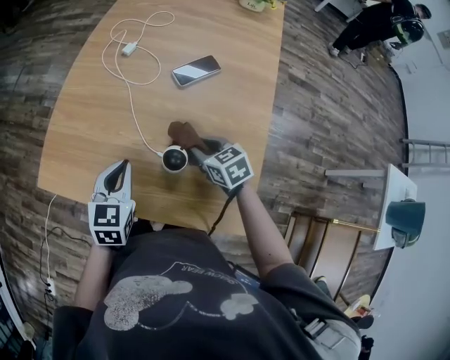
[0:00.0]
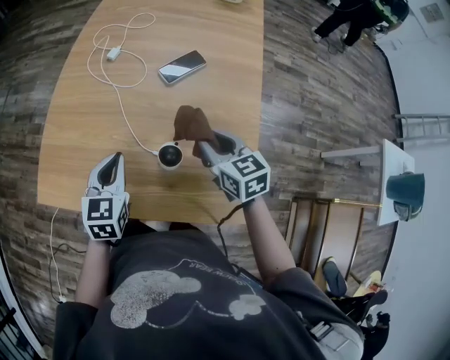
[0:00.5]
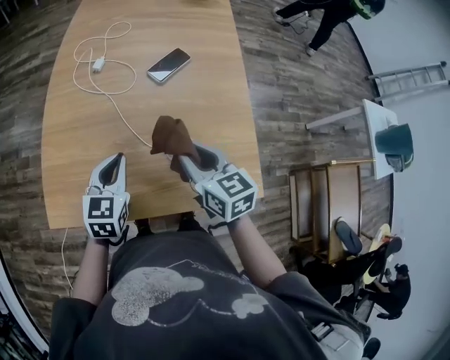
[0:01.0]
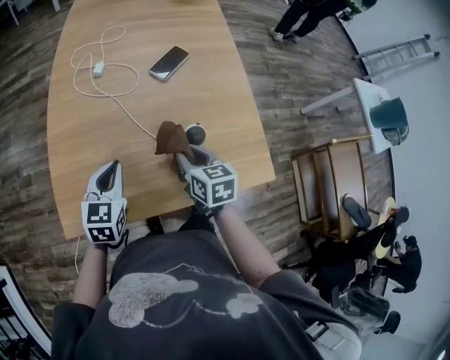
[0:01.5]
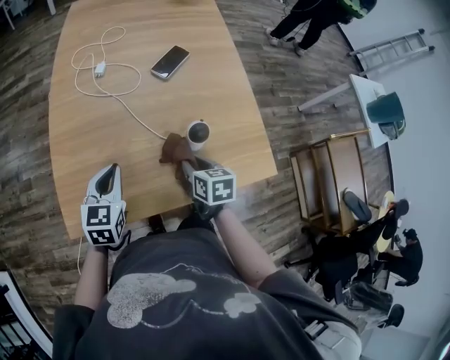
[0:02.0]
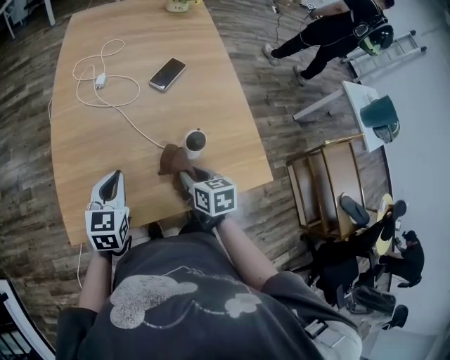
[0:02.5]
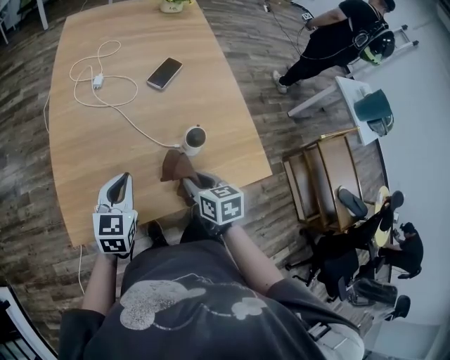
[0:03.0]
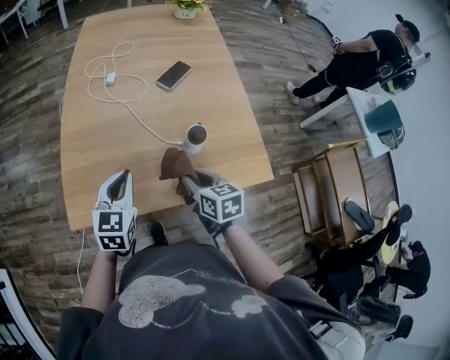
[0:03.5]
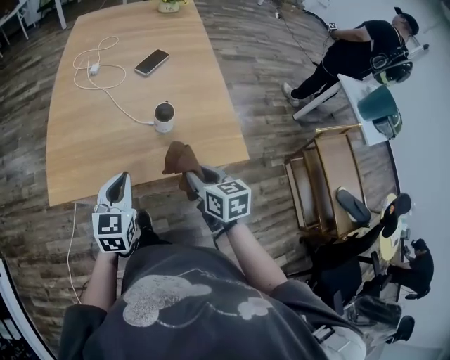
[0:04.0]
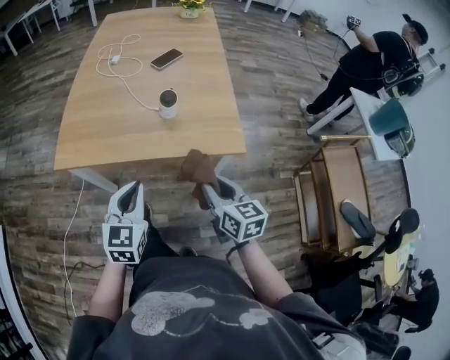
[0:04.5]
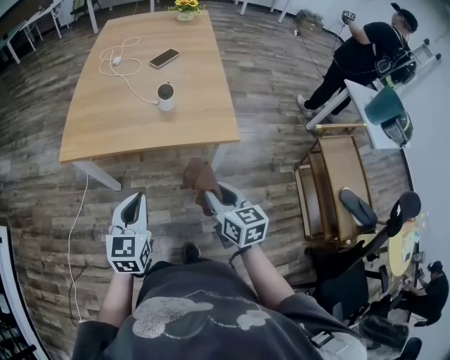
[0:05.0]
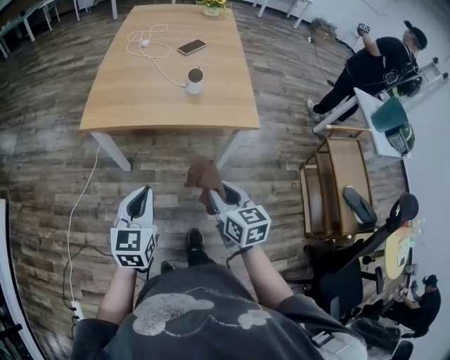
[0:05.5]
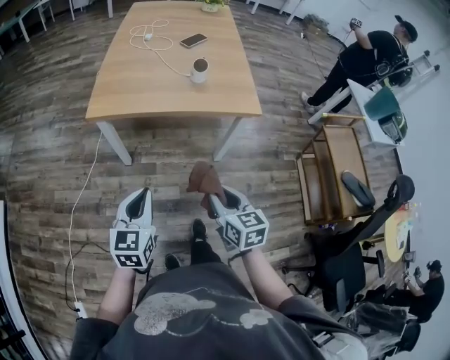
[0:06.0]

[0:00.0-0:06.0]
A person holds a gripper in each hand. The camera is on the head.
0:00.0 to 0:02.0: The right gripper travels upward and back again, roughly 15 cm each way, and turns by about 50 degrees; the left gripper moves approximately 10 cm, and swivels approximately 20 degrees.
0:02.0 to 0:04.0: The right gripper goes about 15 cm backward, to the right and upward. Meanwhile the left gripper shifts some 15 cm backward and to the right.
0:04.0 to 0:06.0: Both grippers travel together backward, roughly 35 cm.

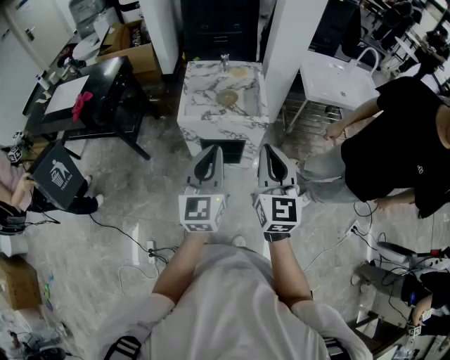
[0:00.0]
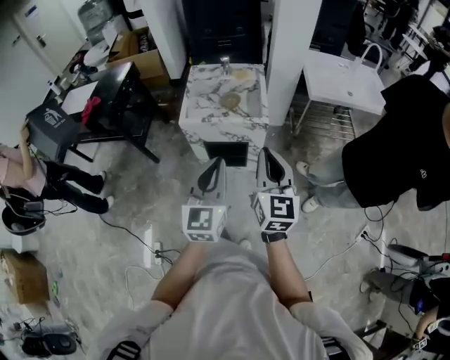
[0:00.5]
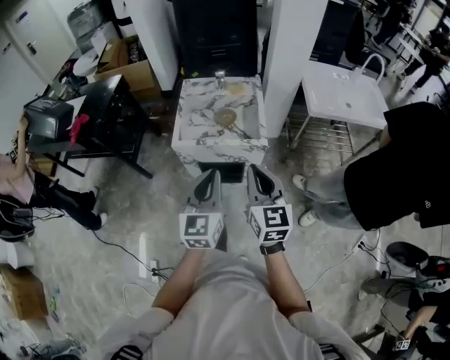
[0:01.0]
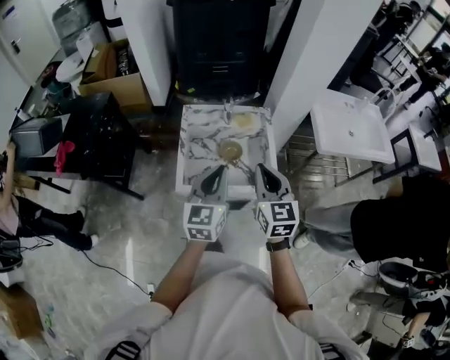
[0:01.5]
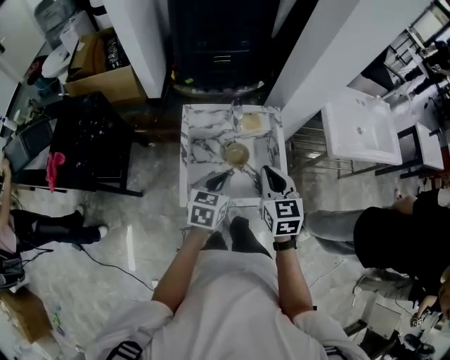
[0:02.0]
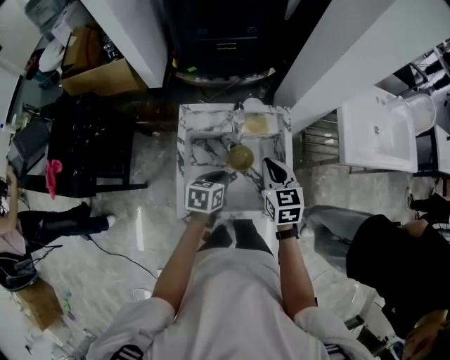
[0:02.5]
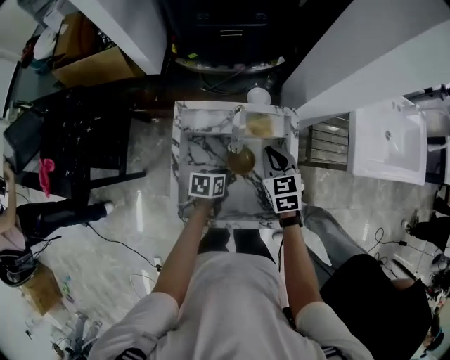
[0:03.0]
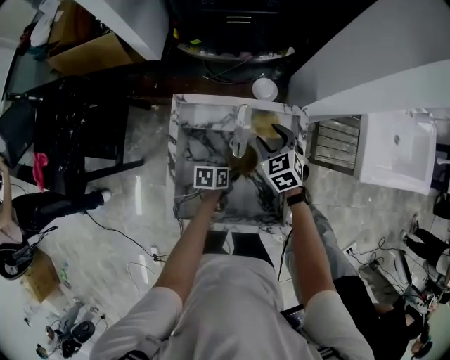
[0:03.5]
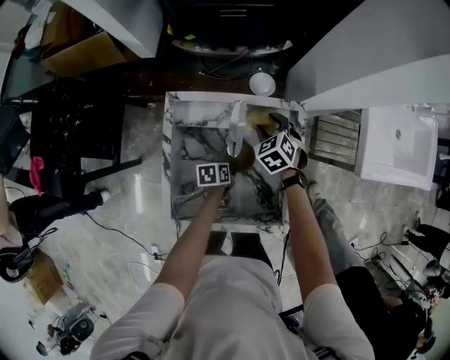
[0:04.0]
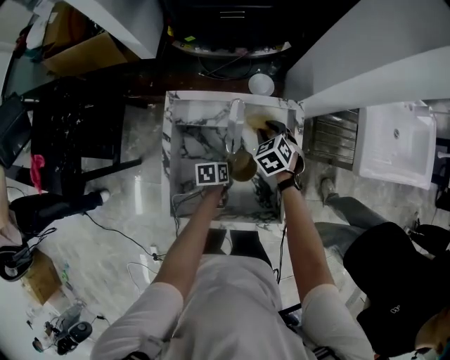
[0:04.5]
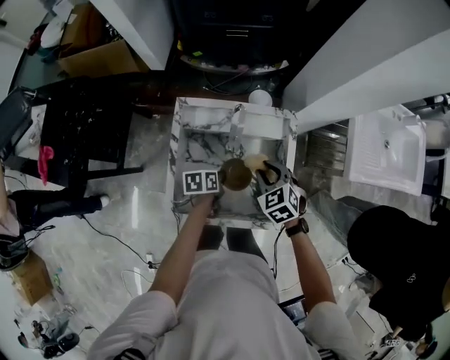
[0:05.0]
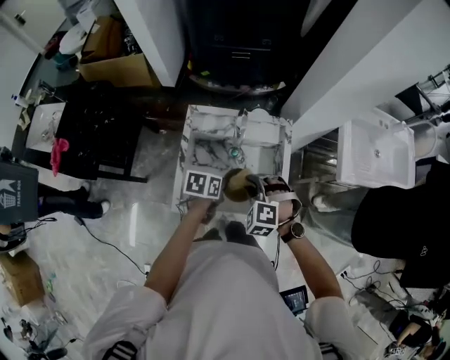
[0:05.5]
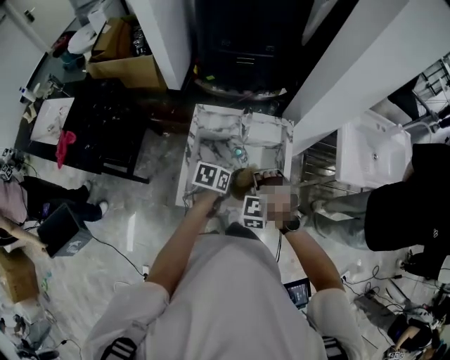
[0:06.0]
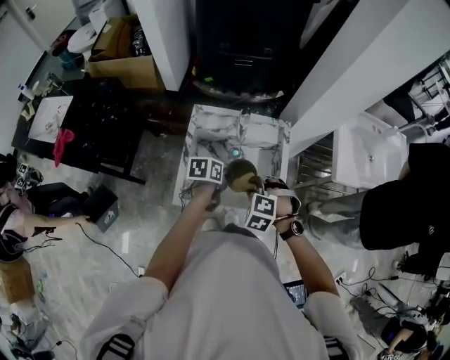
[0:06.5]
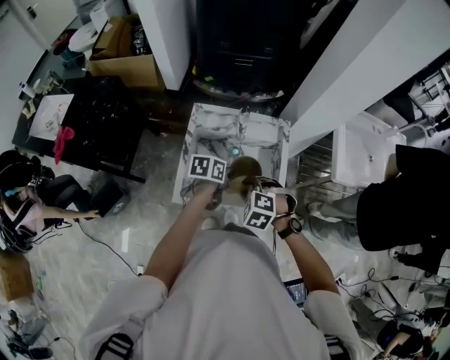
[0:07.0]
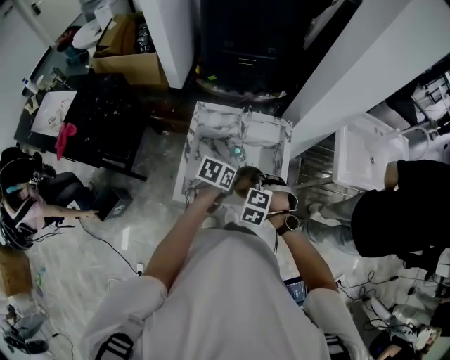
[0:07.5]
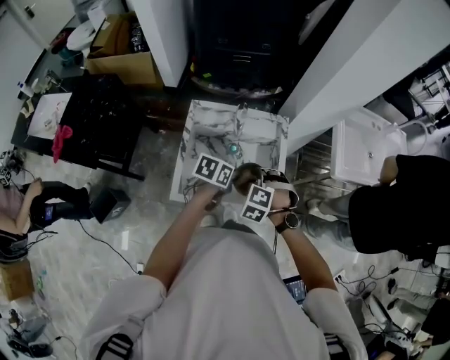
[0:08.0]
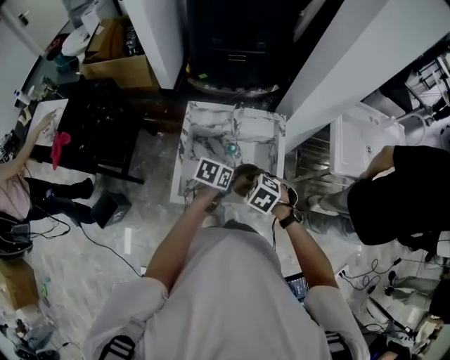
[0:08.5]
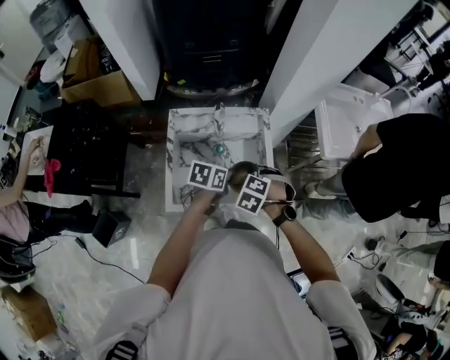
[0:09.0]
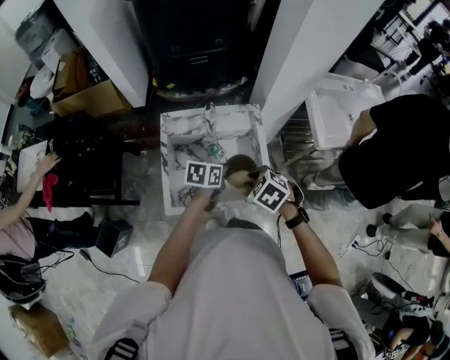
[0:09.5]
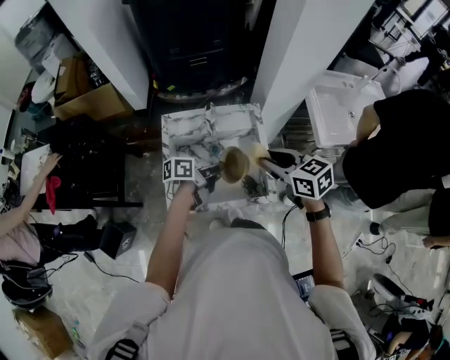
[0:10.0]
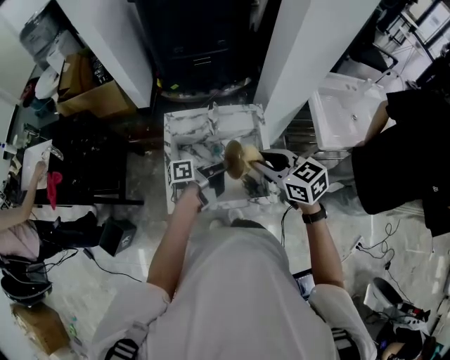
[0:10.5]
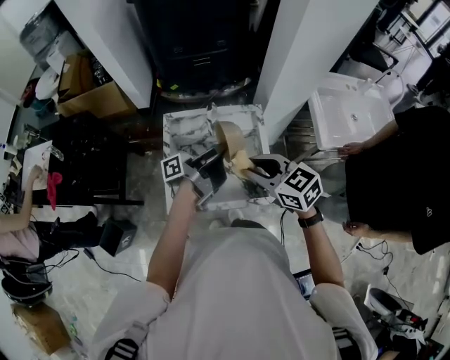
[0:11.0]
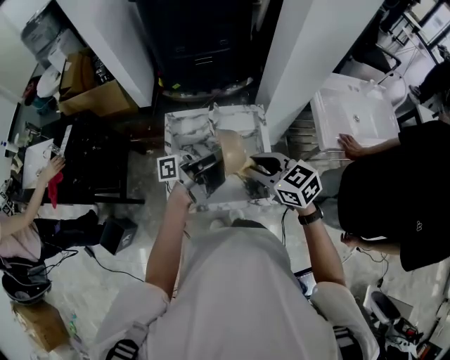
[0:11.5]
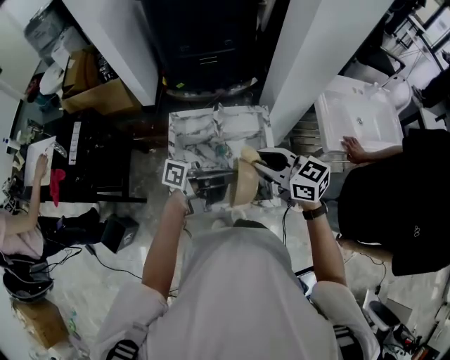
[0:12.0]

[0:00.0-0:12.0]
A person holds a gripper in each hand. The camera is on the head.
0:00.0 to 0:02.0: The left gripper is displaced forward and downward by approximately 40 cm, and tilts its fingers some 40 degrees downward. Meanwhile the right gripper shifts approximately 40 cm forward, and turns by roughly 30 degrees.
0:02.0 to 0:04.0: The right gripper heads forward and downward, covering approximately 35 cm, tilts its fingers roughly 30 degrees downward, and opens. Meanwhile the left gripper travels downward by roughly 30 cm, rolls counterclockwise, seen from behind, by roughly 40 degrees, and opens up.
0:04.0 to 0:06.0: The left gripper goes approximately 20 cm upward, swivels some 20 degrees, and closes up. Meanwhile the right gripper goes some 25 cm backward and upward, twists roughly 60 degrees counterclockwise, seen from behind, and closes its fingers.
0:06.0 to 0:08.0: The right gripper changes its angle by about 20 degrees.
0:08.0 to 0:10.0: The right gripper moves upward, roughly 15 cm, and rotates around the line of its fingers by roughly 60 degrees, clockwise from behind; the left gripper rotates approximately 30 degrees.
0:10.0 to 0:12.0: The left gripper moves upward, about 15 cm, and angles its fingers upward, by approximately 30 degrees, while the right gripper moves about 5 cm.

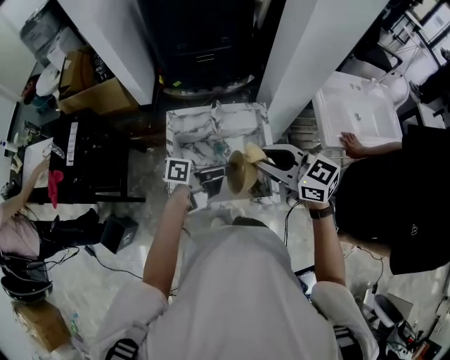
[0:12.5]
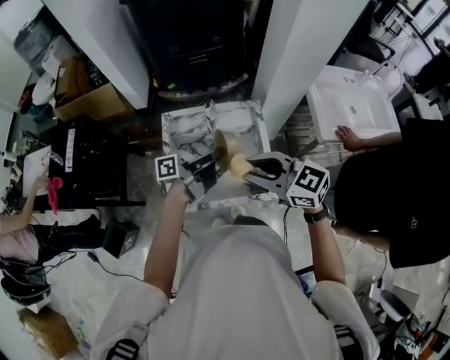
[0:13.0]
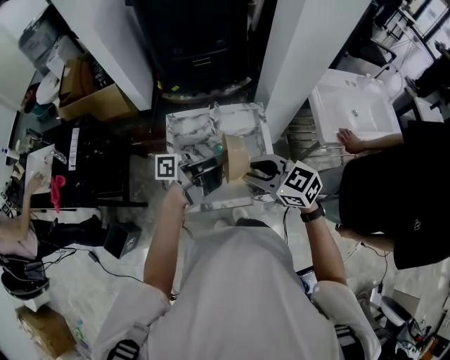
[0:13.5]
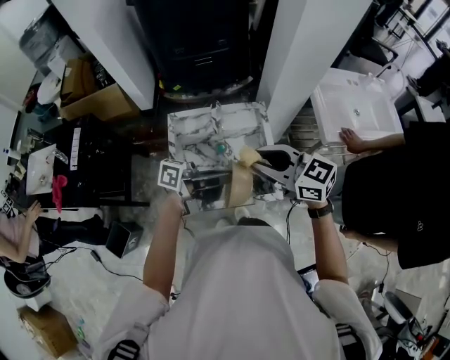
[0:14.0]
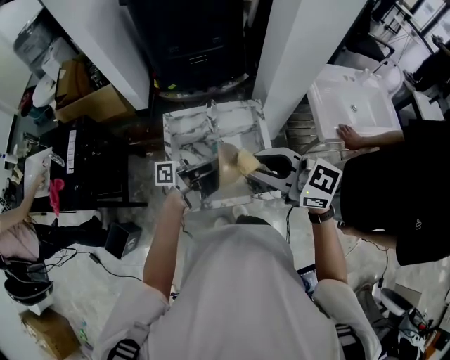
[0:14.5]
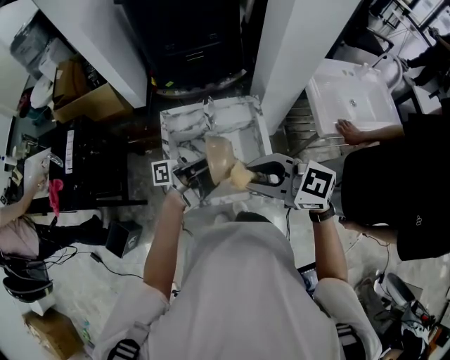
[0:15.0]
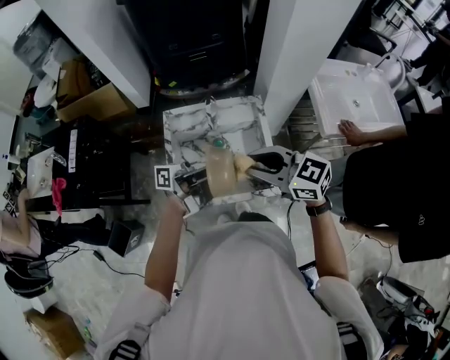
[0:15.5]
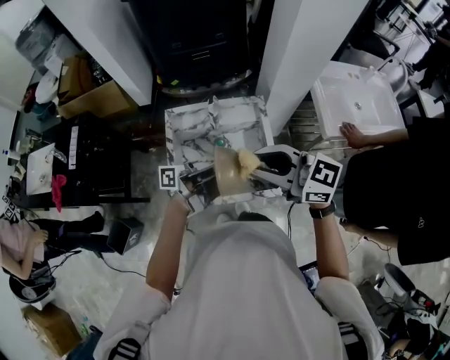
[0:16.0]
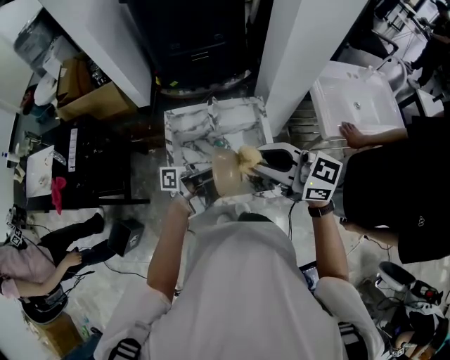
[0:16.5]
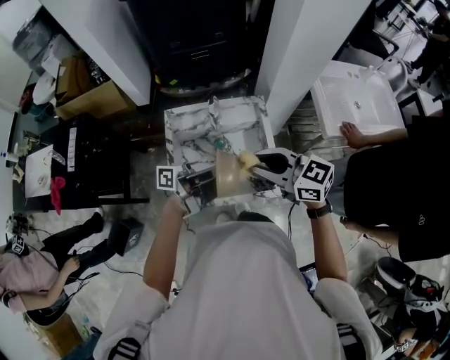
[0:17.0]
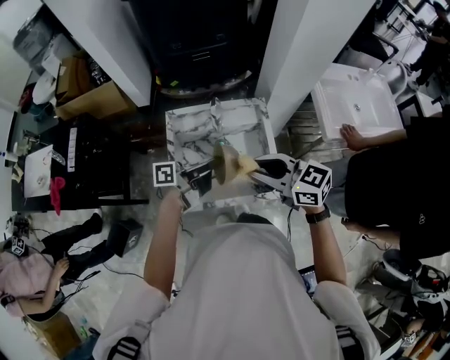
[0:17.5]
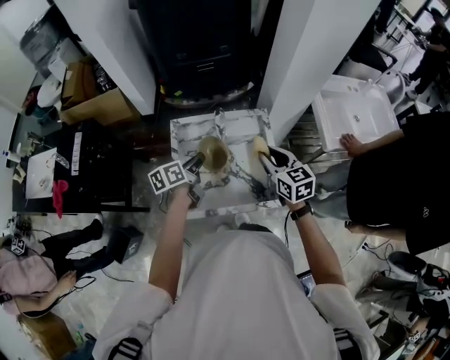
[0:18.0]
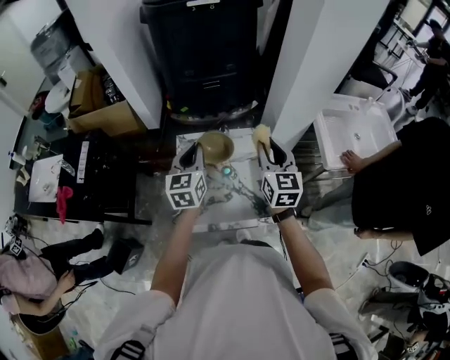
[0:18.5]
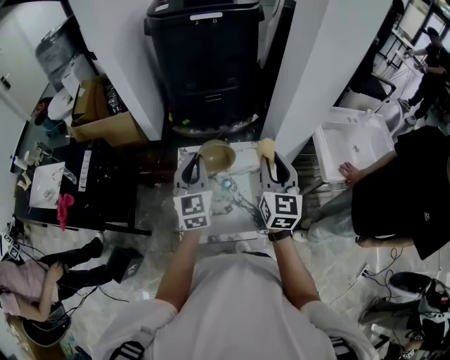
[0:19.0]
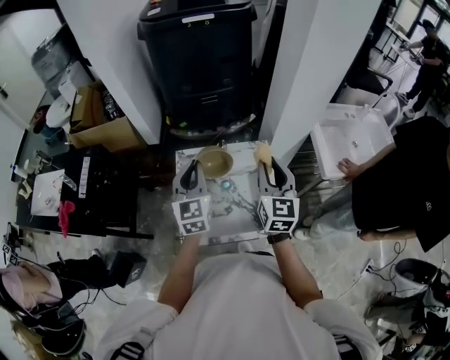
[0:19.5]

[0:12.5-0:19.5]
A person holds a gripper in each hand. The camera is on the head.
0:12.5 to 0:14.5: The right gripper changes place by approximately 5 cm. Meanwhile the left gripper goes approximately 5 cm upward, and changes its angle by roughly 20 degrees.
0:14.5 to 0:16.0: The grippers make only small movements.
0:16.0 to 0:17.5: Both grippers travel together downward, approximately 5 cm. The left gripper swivels approximately 20 degrees.
0:17.5 to 0:19.5: The right gripper shifts by about 15 cm, and turns by roughly 60 degrees; the left gripper moves approximately 15 cm, and changes its angle by some 100 degrees.

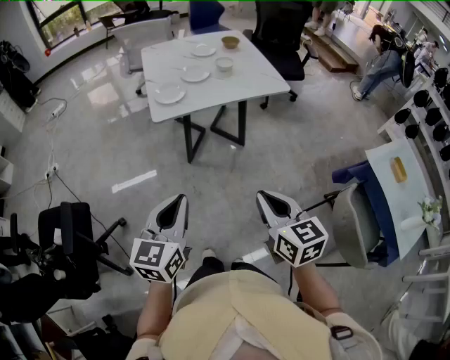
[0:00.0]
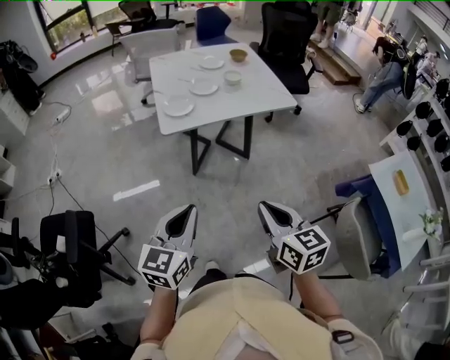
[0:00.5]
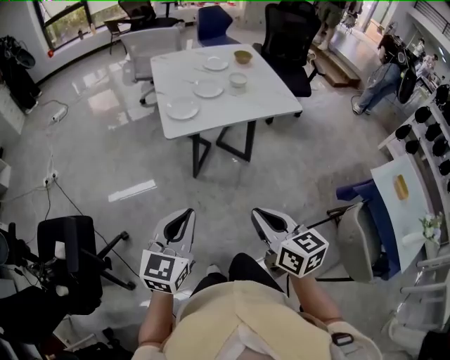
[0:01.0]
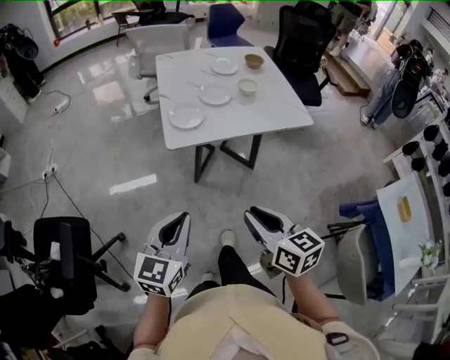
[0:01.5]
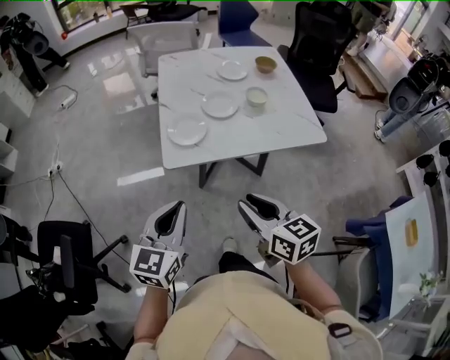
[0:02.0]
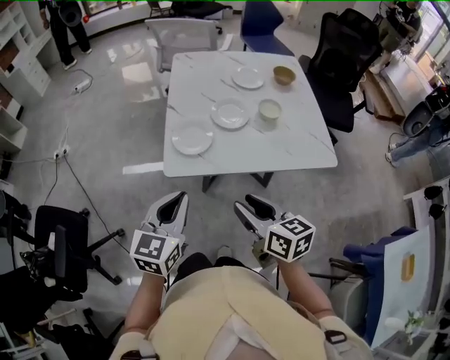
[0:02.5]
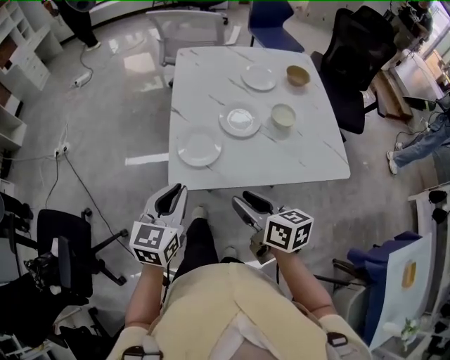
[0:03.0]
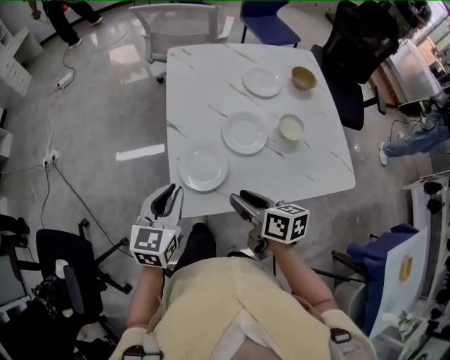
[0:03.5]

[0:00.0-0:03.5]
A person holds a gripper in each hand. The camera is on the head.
0:00.0 to 0:02.0: The two grippers go about 25 cm forward. The right gripper opens.
0:02.0 to 0:03.5: The right gripper moves forward and downward, some 25 cm, and swivels roughly 30 degrees. Meanwhile the left gripper heads forward, covering about 25 cm.
